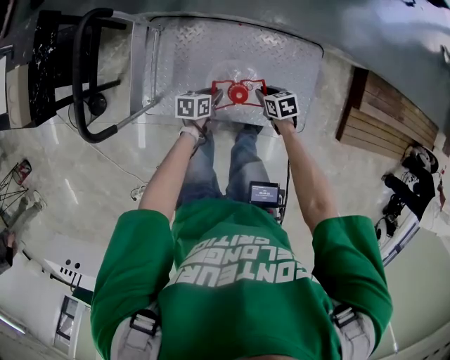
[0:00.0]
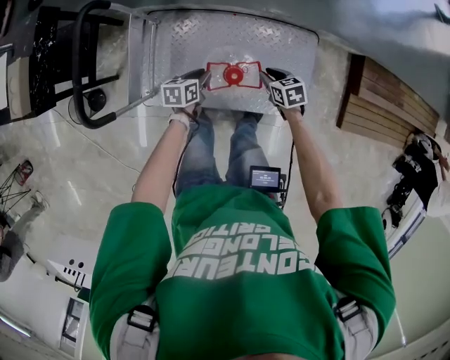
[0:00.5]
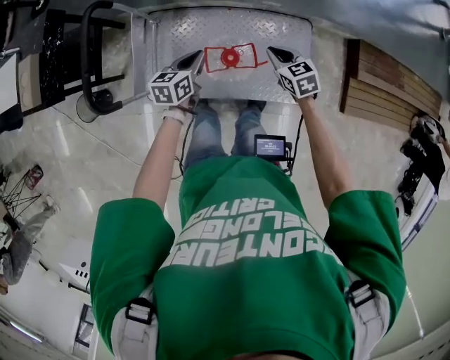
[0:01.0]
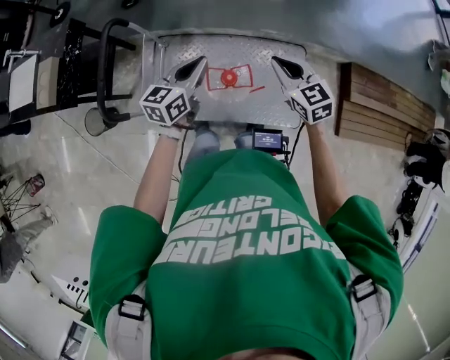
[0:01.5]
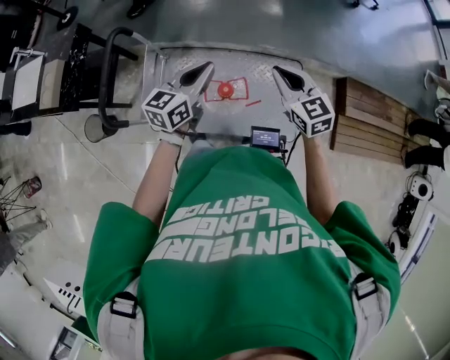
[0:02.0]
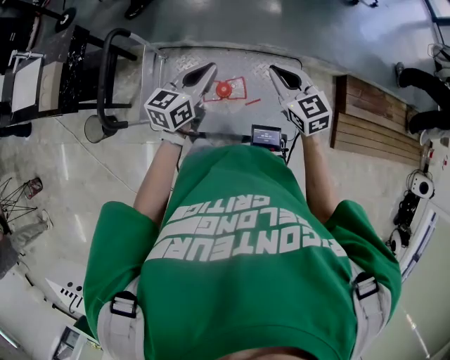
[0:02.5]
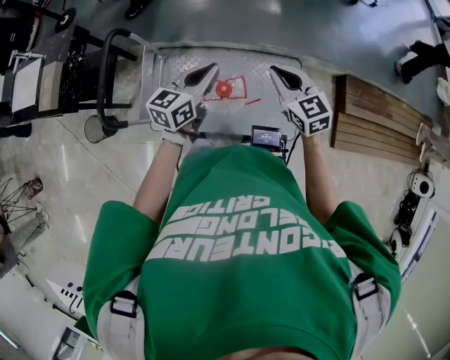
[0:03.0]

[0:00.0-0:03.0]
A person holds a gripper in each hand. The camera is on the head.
0:00.0 to 0:01.5: Both grippers move upward, some 35 cm. The right gripper tilts its fingers approximately 30 degrees upward; the left gripper points its fingers approximately 30 degrees further upward.
0:01.5 to 0:03.0: The left gripper ends up some 5 cm from where it was.

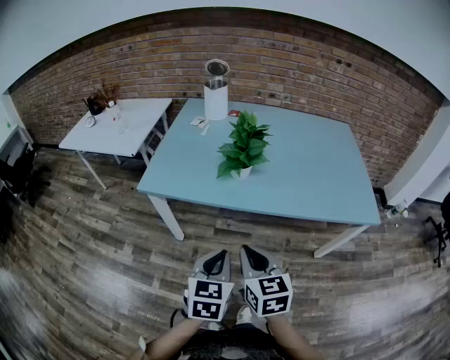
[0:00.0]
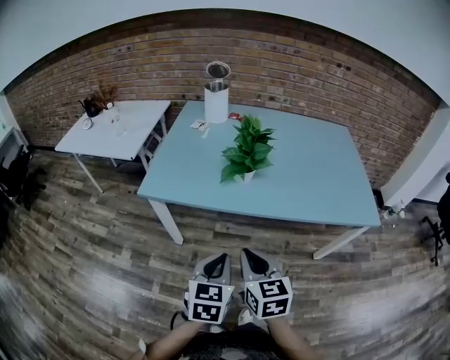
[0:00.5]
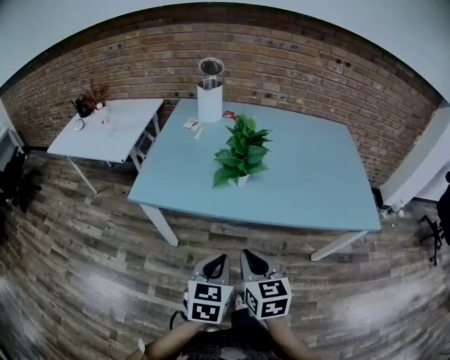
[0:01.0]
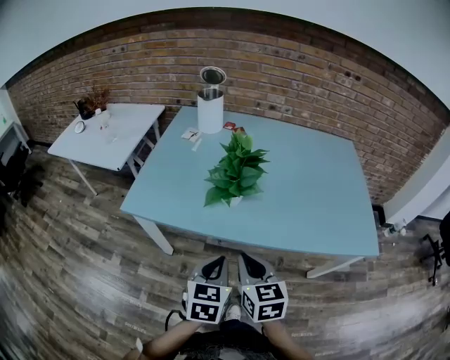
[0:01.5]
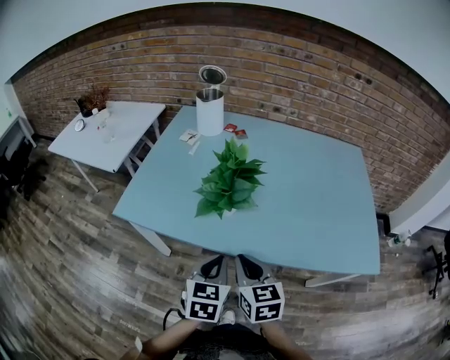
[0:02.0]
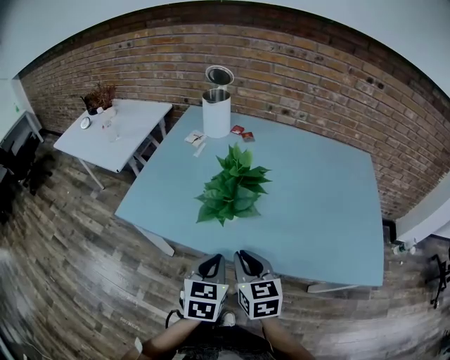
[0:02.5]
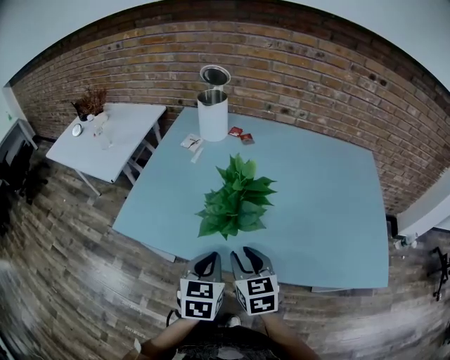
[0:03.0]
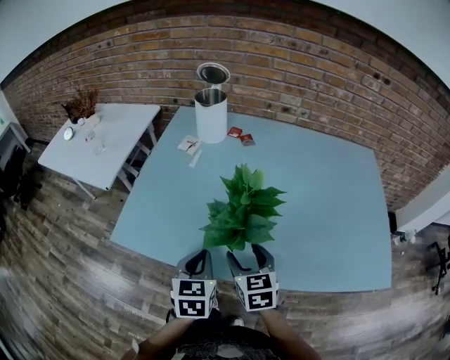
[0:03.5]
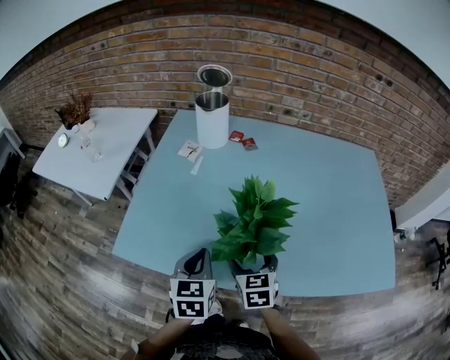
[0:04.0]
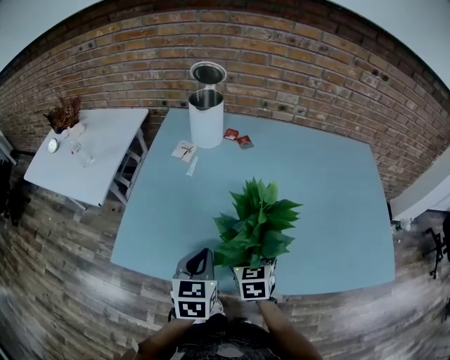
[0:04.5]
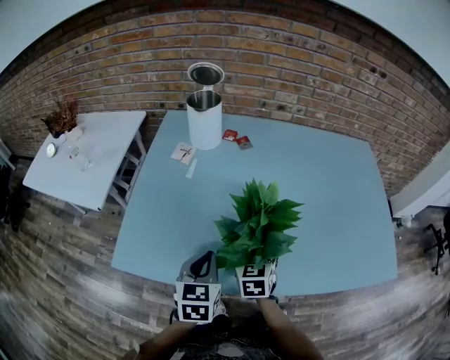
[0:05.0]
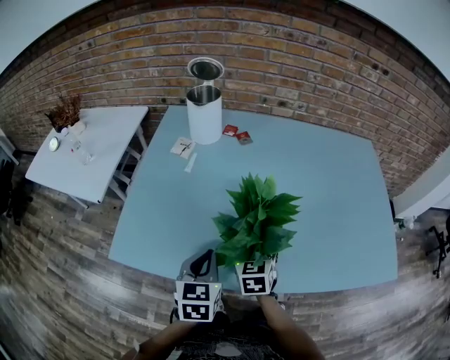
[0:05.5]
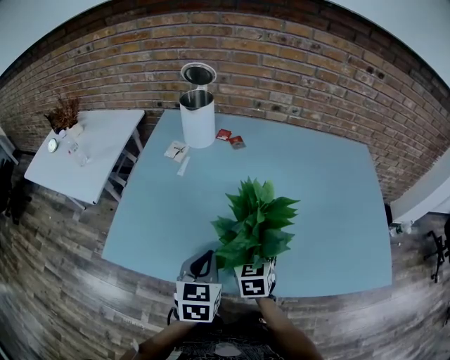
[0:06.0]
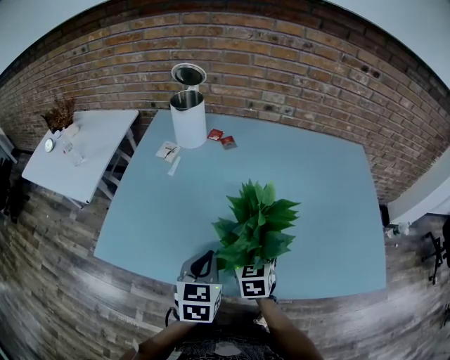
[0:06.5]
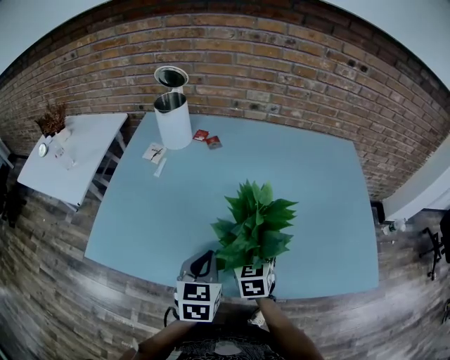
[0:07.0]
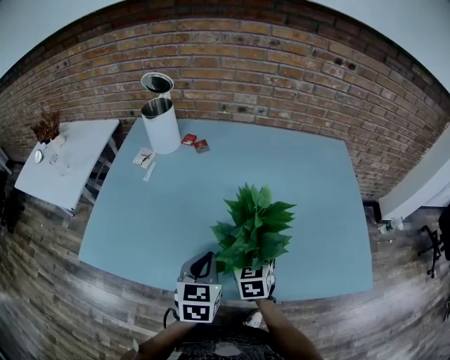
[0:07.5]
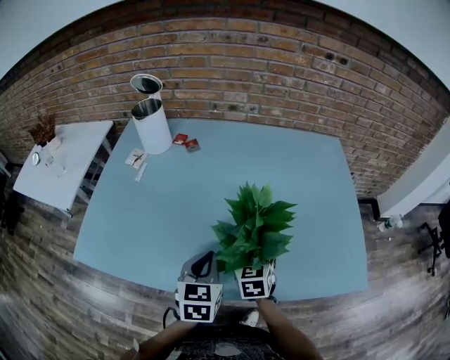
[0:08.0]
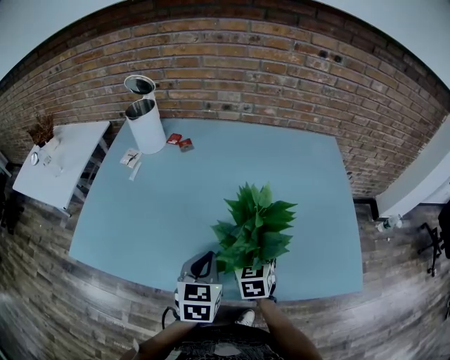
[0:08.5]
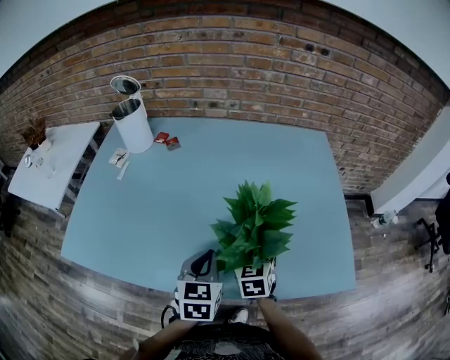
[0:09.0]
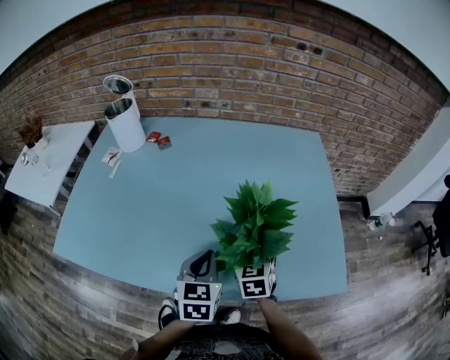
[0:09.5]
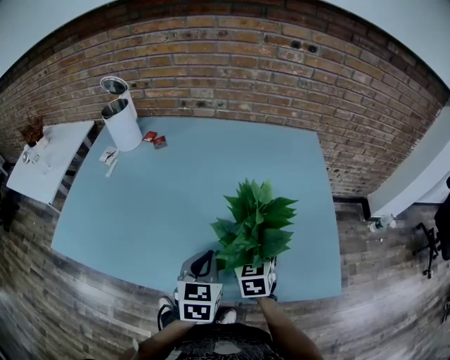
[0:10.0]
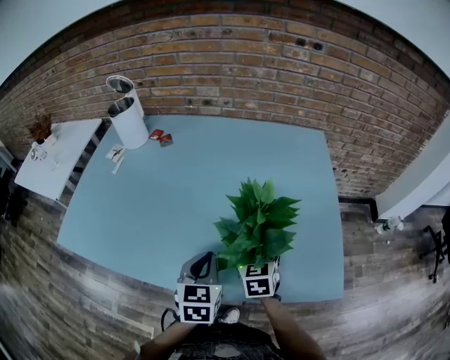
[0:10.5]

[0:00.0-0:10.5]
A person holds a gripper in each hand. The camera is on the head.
0:00.0 to 0:02.0: The grippers both shift forward by roughly 15 cm.
0:02.0 to 0:04.0: The right gripper shifts some 20 cm forward and downward, and opens; the left gripper heads forward and to the left, covering some 20 cm.
0:04.0 to 0:06.5: The grippers both shift to the right by about 10 cm.
0:06.5 to 0:08.5: Both grippers travel together to the right, roughly 15 cm.
0:08.5 to 0:10.5: Both grippers travel together to the right, roughly 15 cm.

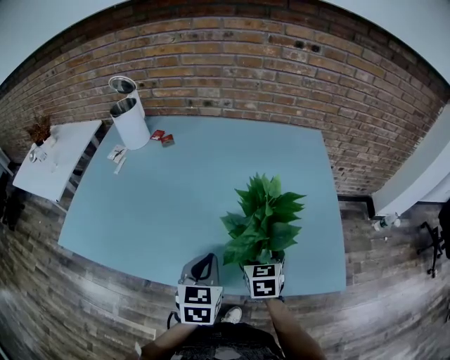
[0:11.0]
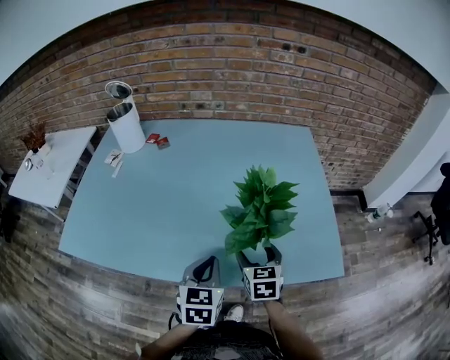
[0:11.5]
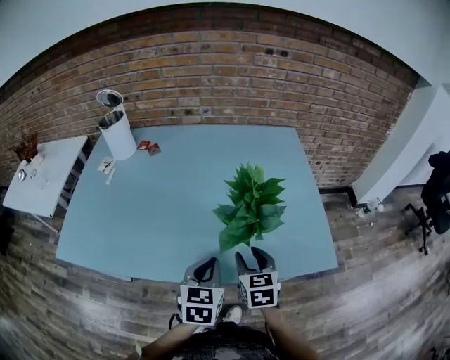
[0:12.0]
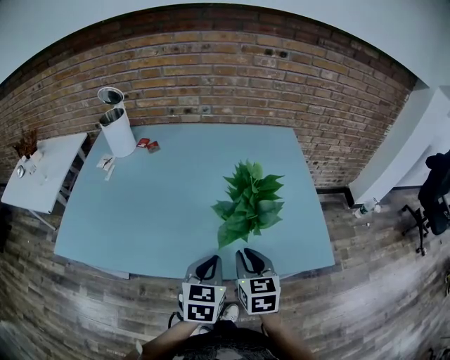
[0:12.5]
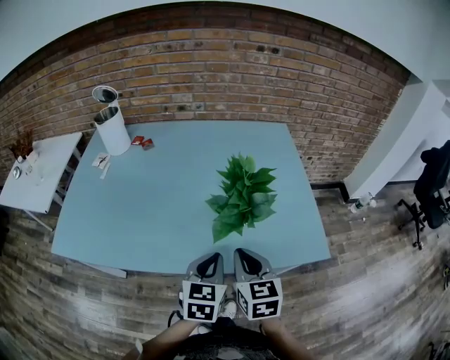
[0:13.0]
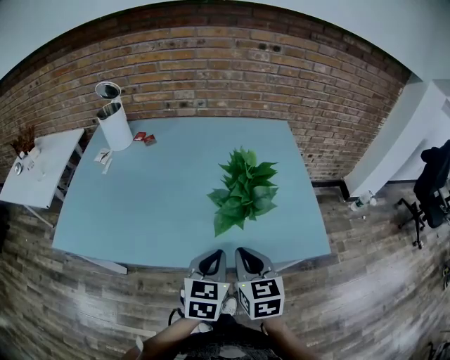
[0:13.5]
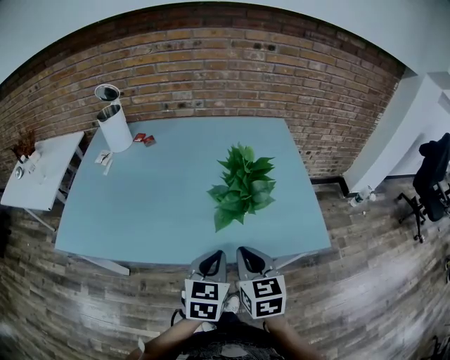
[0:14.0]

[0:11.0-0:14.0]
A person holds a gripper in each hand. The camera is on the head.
0:11.0 to 0:12.5: The left gripper heads backward, covering roughly 5 cm, while the right gripper moves backward and upward, some 15 cm, and closes.
0:12.5 to 0:14.0: The left gripper changes place by some 5 cm; the right gripper goes about 5 cm backward.

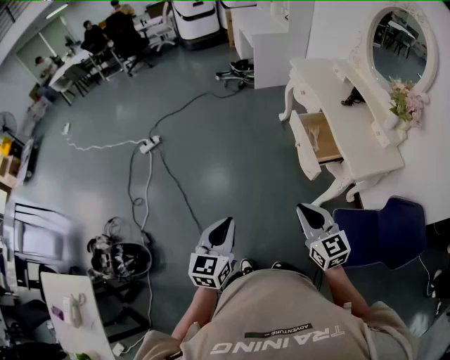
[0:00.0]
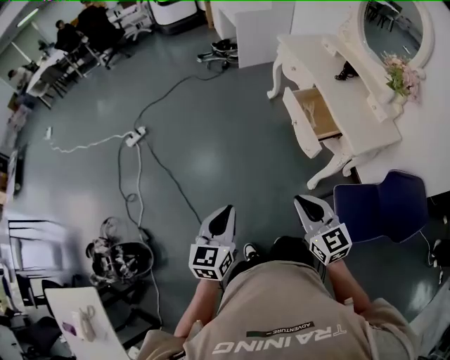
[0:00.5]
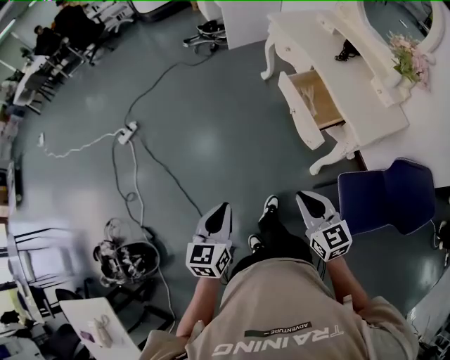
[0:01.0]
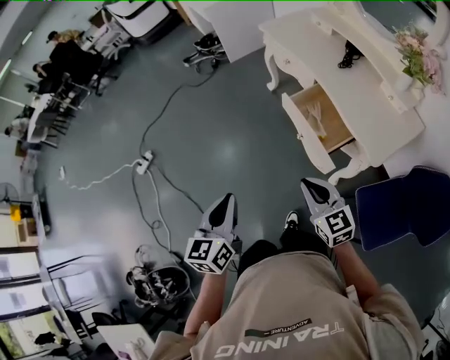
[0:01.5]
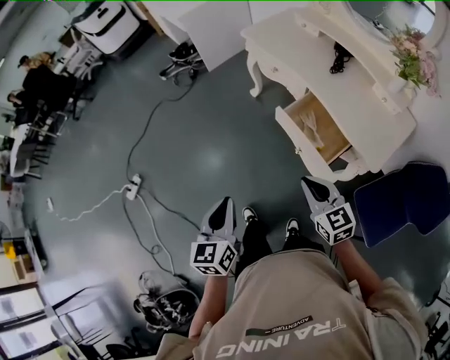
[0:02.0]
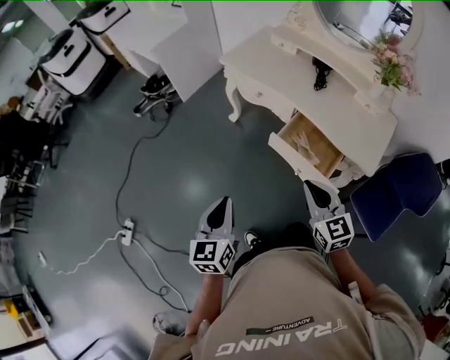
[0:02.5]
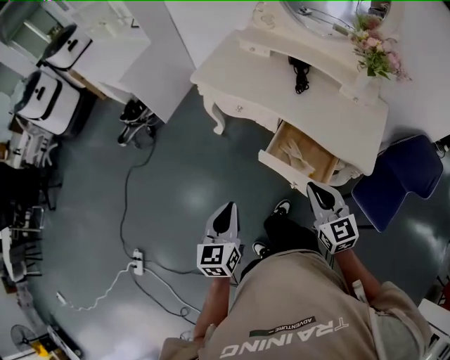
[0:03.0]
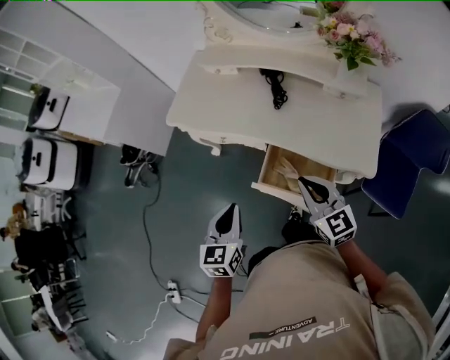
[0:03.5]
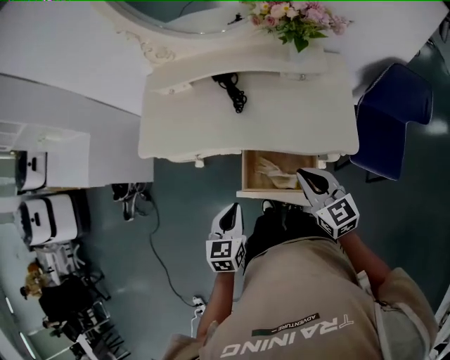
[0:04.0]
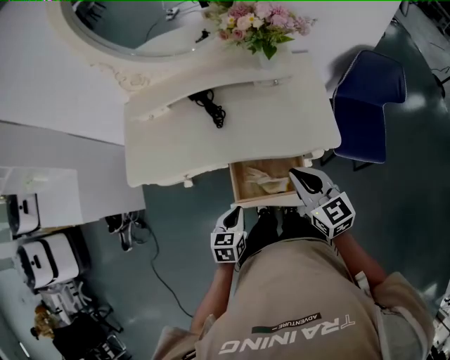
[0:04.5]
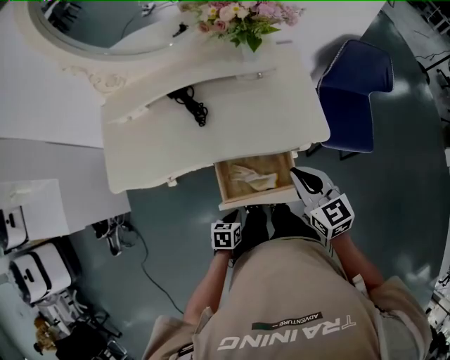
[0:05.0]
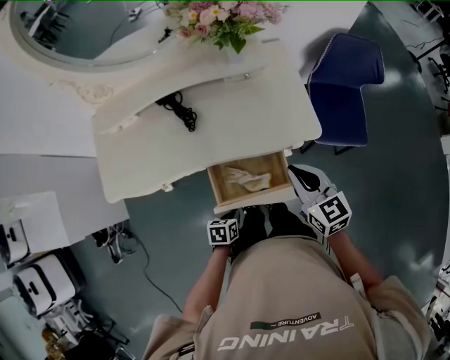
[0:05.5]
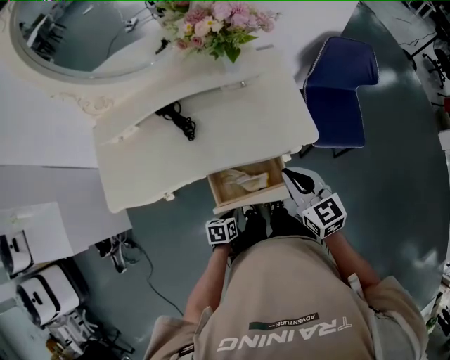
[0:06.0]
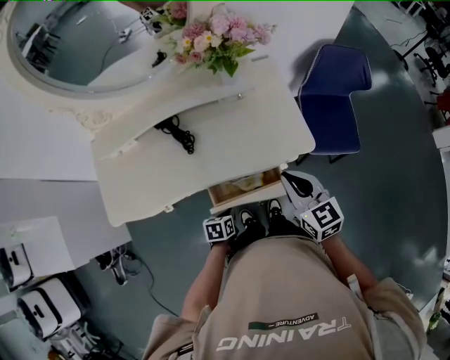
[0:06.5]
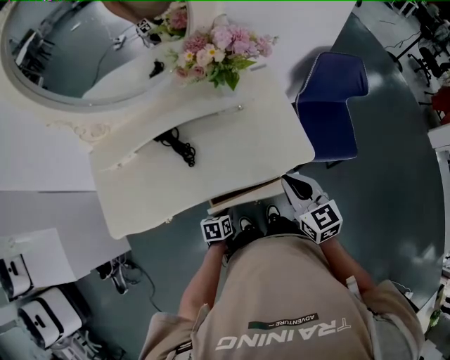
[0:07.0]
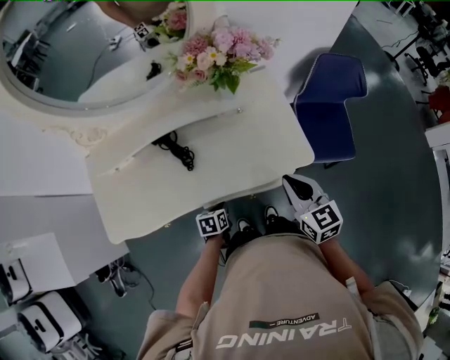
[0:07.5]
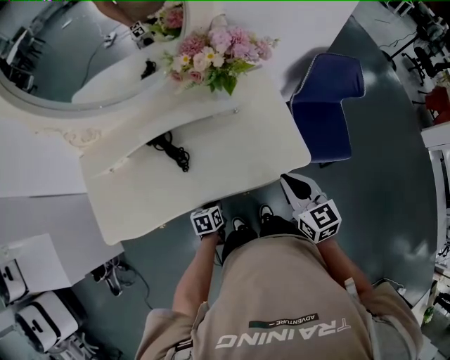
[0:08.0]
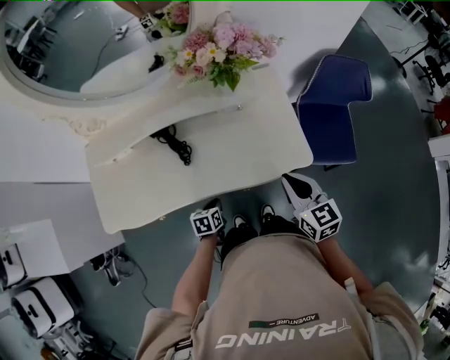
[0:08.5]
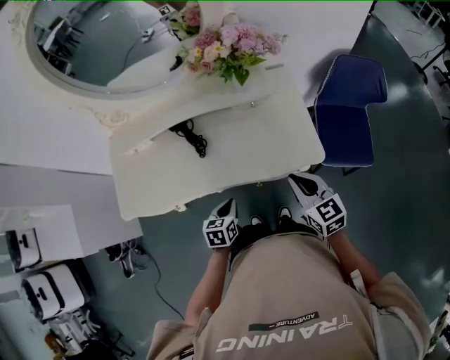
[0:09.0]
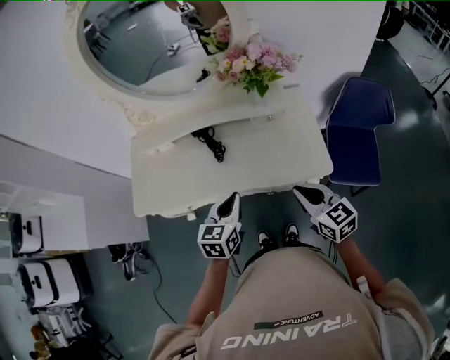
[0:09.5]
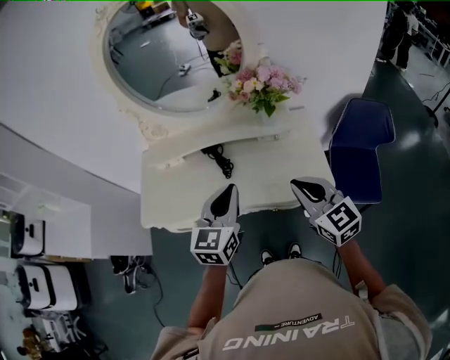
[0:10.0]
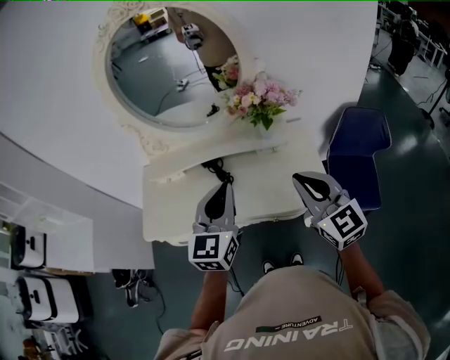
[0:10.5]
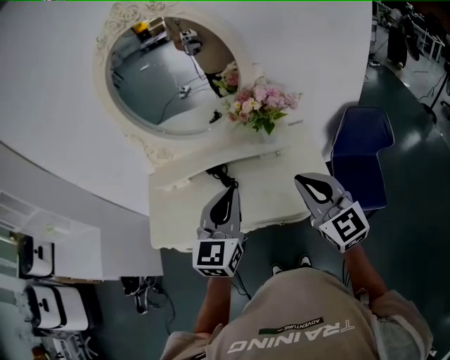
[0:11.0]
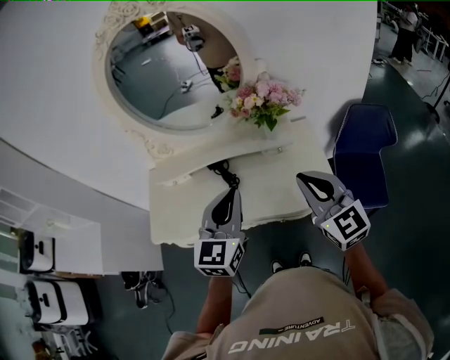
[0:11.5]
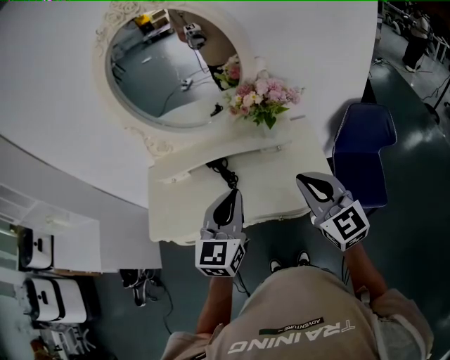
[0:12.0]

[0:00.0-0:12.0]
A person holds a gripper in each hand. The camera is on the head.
0:00.0 to 0:02.0: Both grippers move forward, about 35 cm. The right gripper turns by approximately 20 degrees.
0:02.0 to 0:04.0: The right gripper ends up some 25 cm from where it was, and changes its angle by some 50 degrees; the left gripper changes place by approximately 40 cm, and rotates about 60 degrees.
0:04.0 to 0:06.0: The left gripper is displaced downward by about 20 cm, and rotates about 40 degrees. The right gripper moves roughly 5 cm.
0:06.0 to 0:08.0: The left gripper travels forward by some 15 cm. The right gripper heads forward, covering roughly 5 cm.
0:08.0 to 0:10.0: The left gripper shifts roughly 40 cm upward, and tilts its fingers approximately 40 degrees upward; the right gripper goes about 15 cm upward, and swivels about 30 degrees.
0:10.0 to 0:12.0: The two grippers go approximately 5 cm upward.
